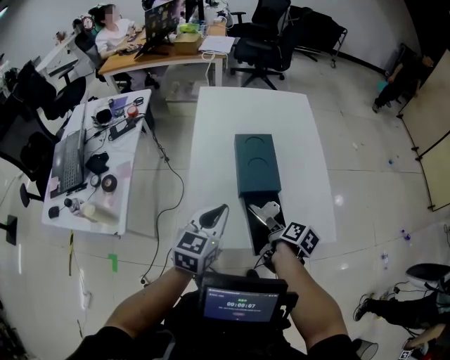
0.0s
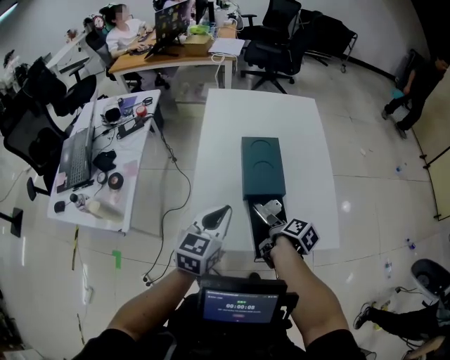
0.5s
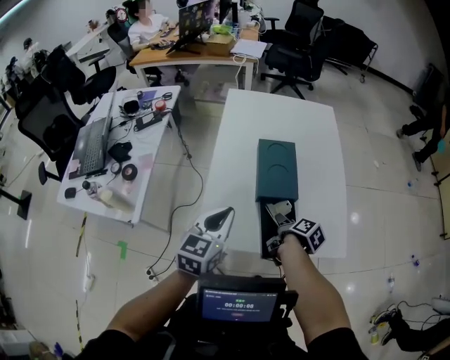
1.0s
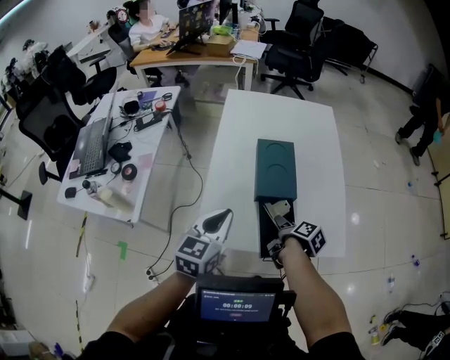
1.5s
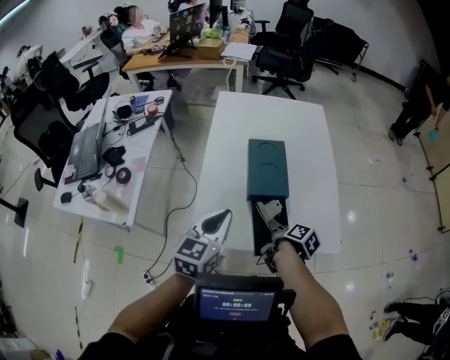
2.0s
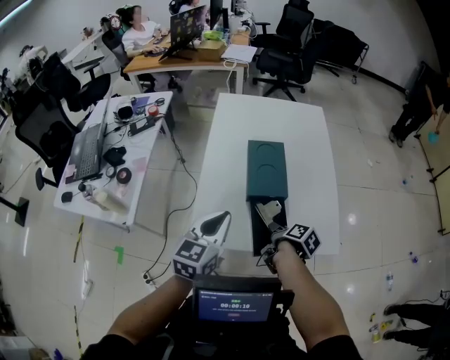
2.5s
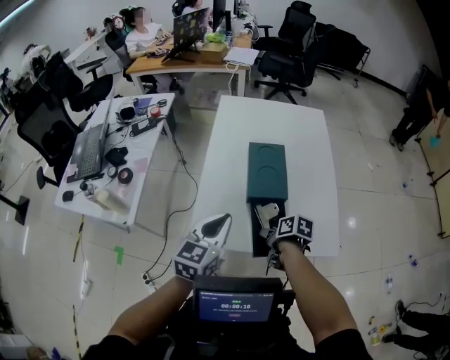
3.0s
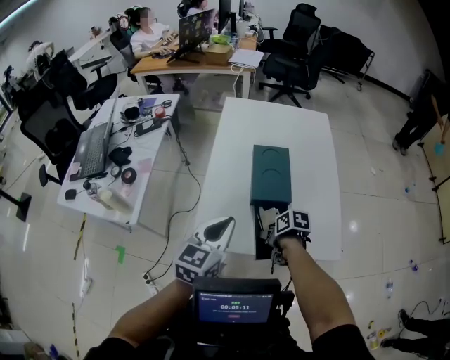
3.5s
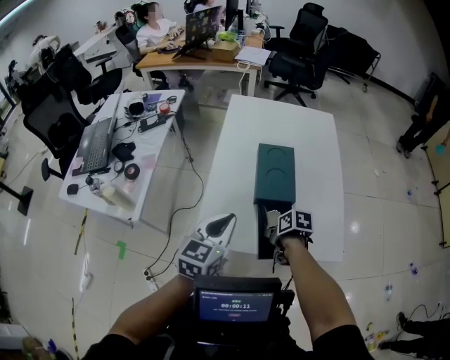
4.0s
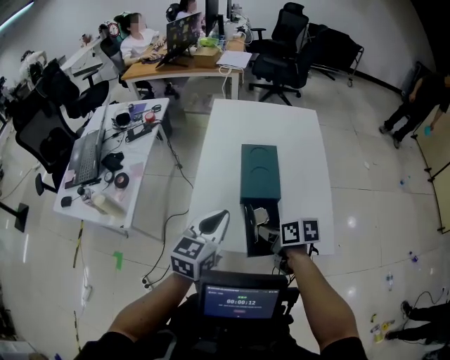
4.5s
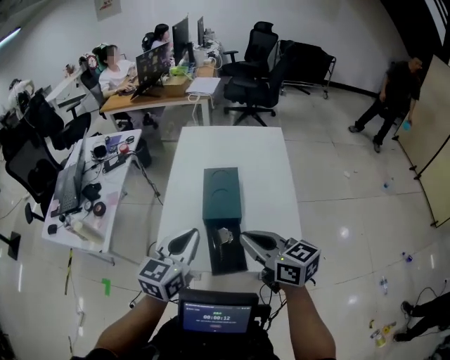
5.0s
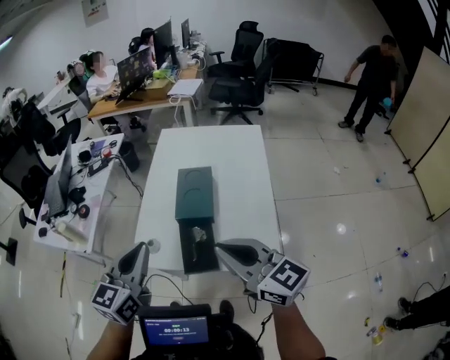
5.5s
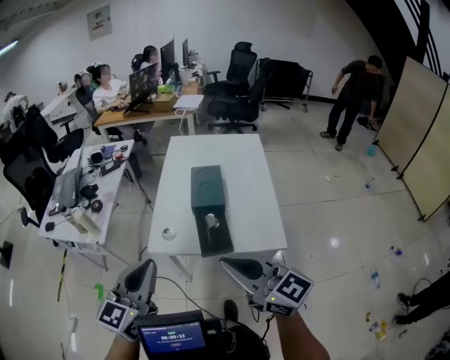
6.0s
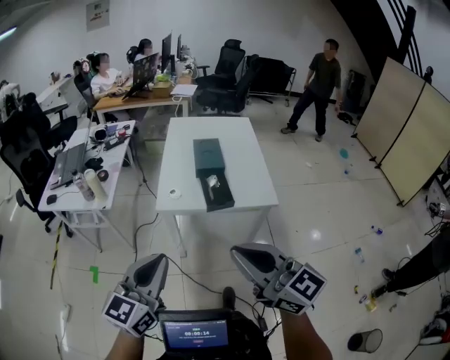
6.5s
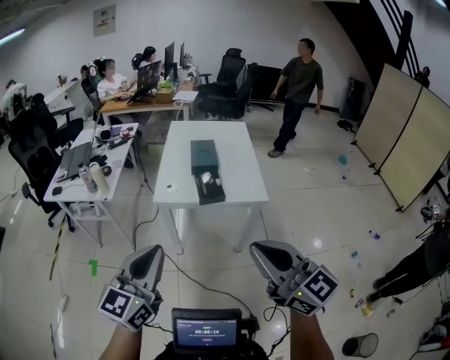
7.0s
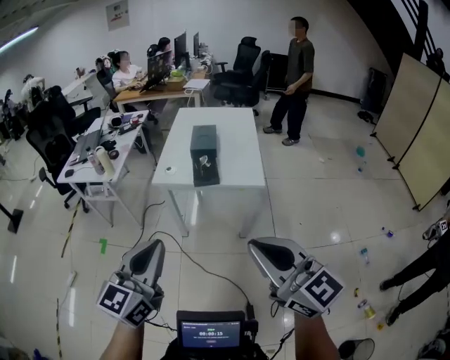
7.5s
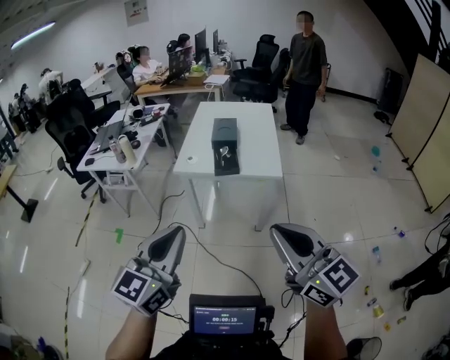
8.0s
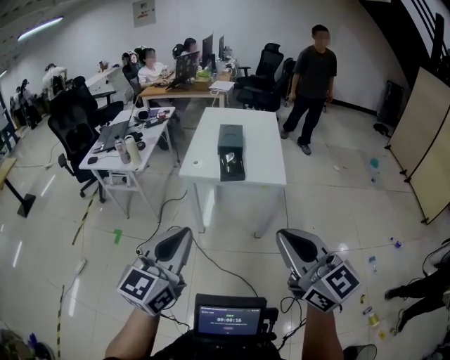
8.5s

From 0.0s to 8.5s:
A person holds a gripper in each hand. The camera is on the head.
From 0.0s to 2.0s: The grippers stay close to where they were, moving slightly.
From 2.0s to 4.0s: The right gripper swivels some 50 degrees.
From 4.0s to 6.5s: Both grippers are carried backward, approximately 60 cm. The right gripper travels upward by approximately 40 cm, angles its fingers upward, by some 60 degrees, and closes up.
From 6.5s to 8.5s: Both grippers travel together backward and to the right, about 30 cm.

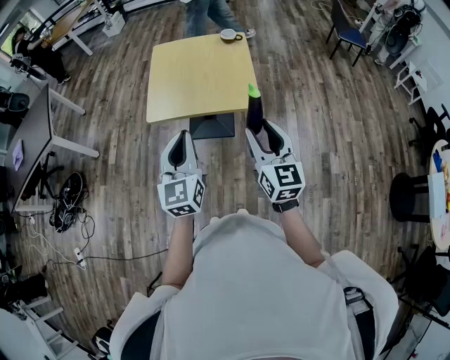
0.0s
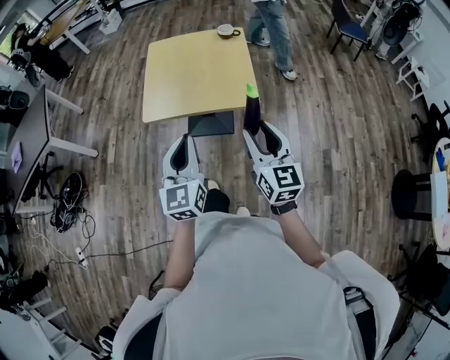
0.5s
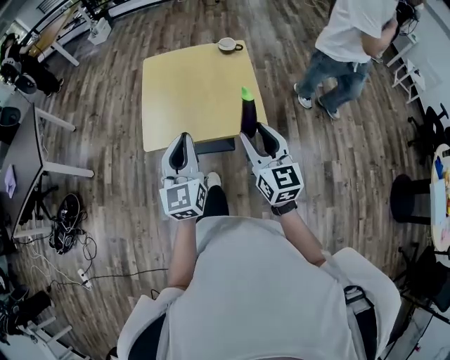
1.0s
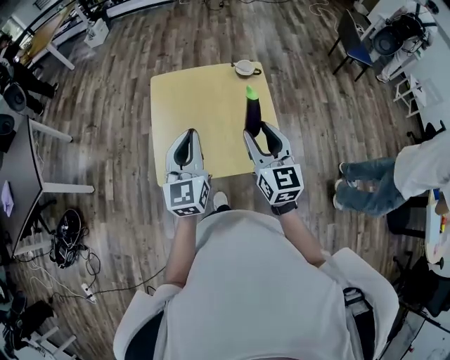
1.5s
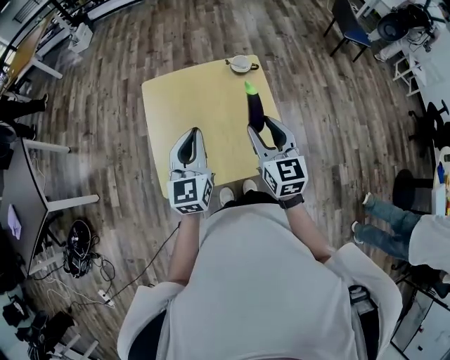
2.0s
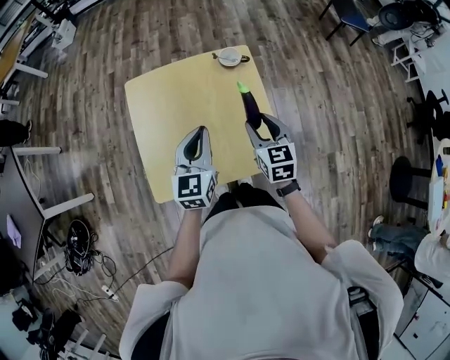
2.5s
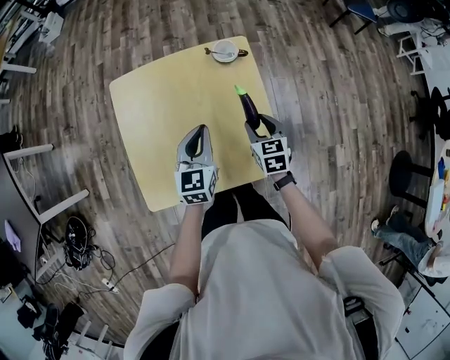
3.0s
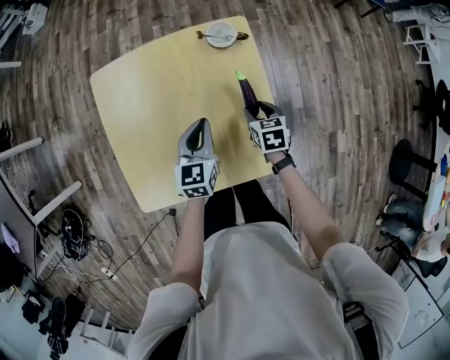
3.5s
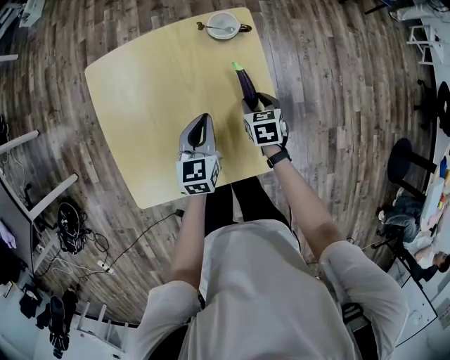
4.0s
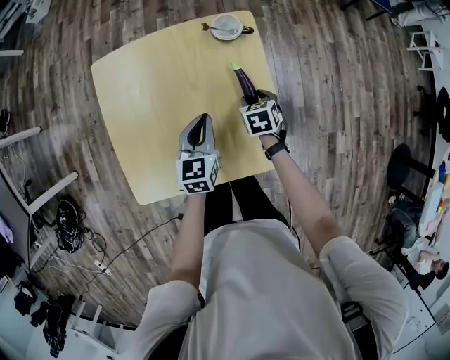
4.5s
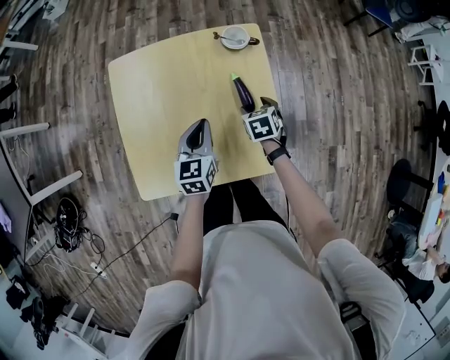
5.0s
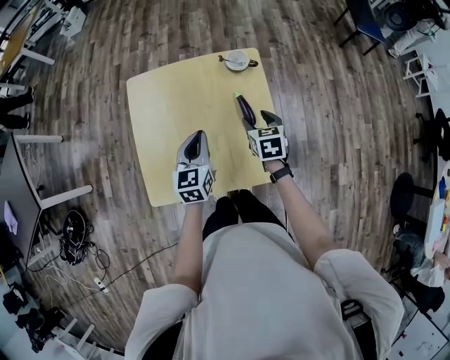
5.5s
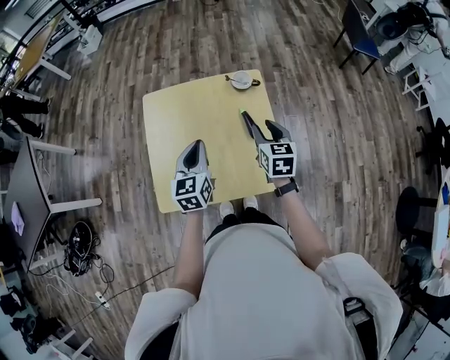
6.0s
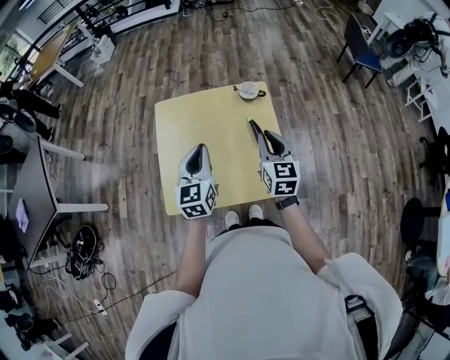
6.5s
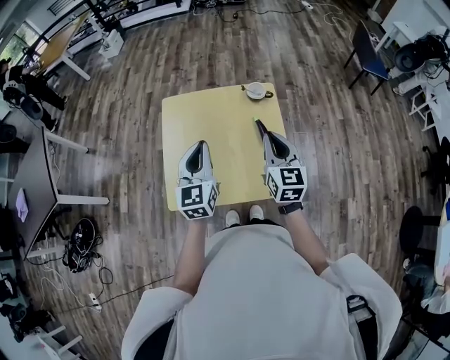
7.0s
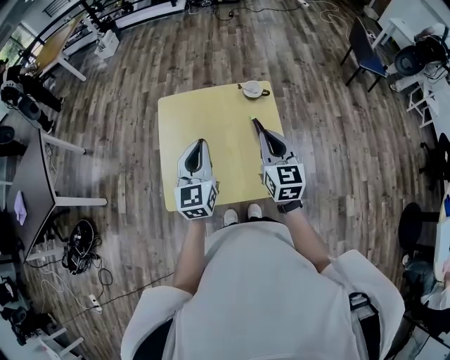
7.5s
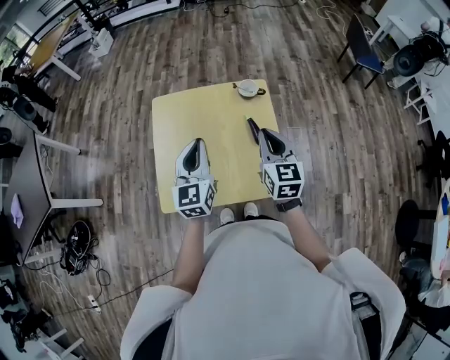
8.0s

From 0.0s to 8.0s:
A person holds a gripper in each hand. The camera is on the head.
From 0.0s to 2.0s: Both grippers travel together forward, roughly 40 cm.
From 2.0s to 4.0s: Both grippers move downward and forward, approximately 30 cm. The left gripper changes its angle by some 20 degrees, while the right gripper tilts its fingers about 40 degrees downward.
From 4.0s to 6.0s: The left gripper shifts some 20 cm upward and to the left. Meanwhile the right gripper goes roughly 25 cm upward, and rotates approximately 30 degrees.
From 6.0s to 8.0s: Both grippers travel together upward, some 10 cm. The right gripper closes its fingers.

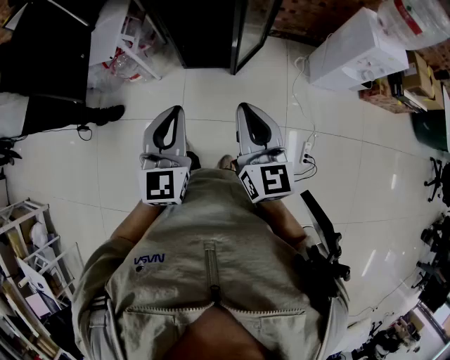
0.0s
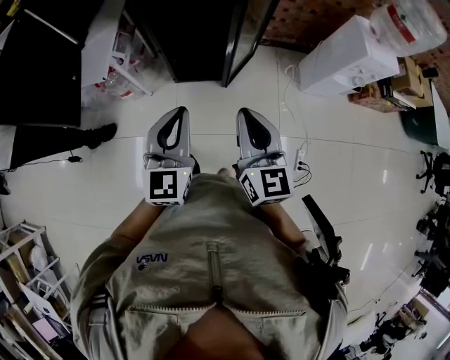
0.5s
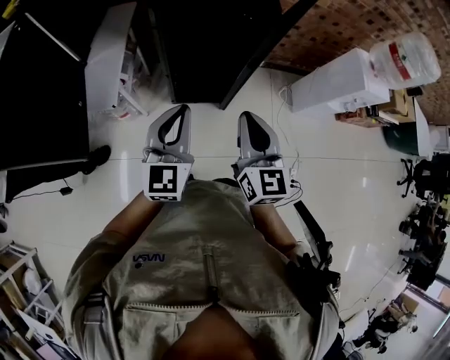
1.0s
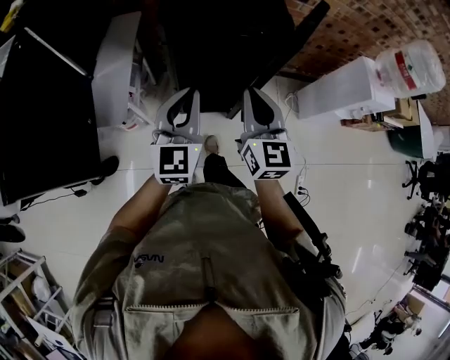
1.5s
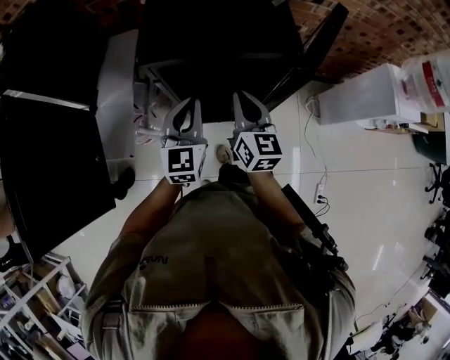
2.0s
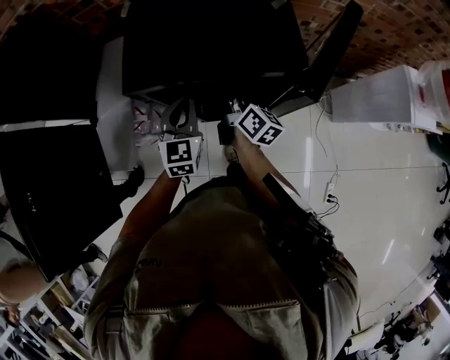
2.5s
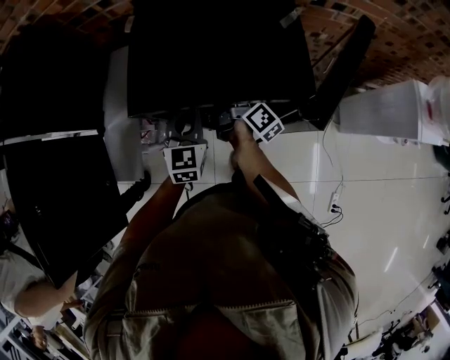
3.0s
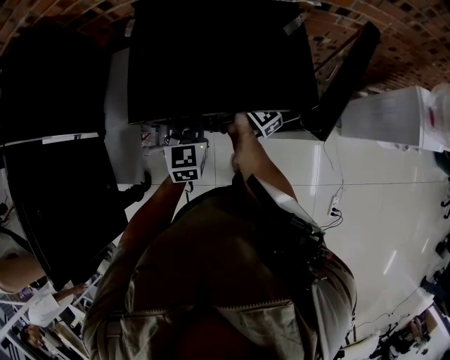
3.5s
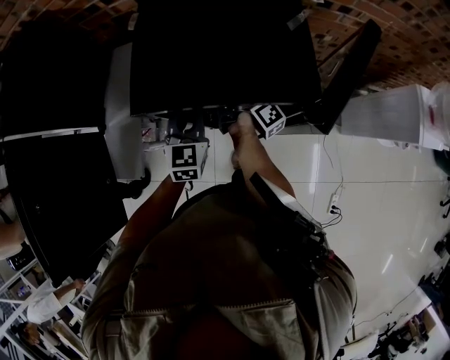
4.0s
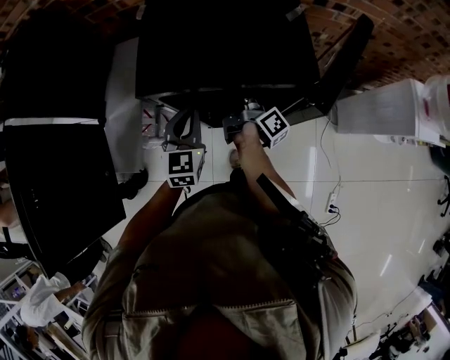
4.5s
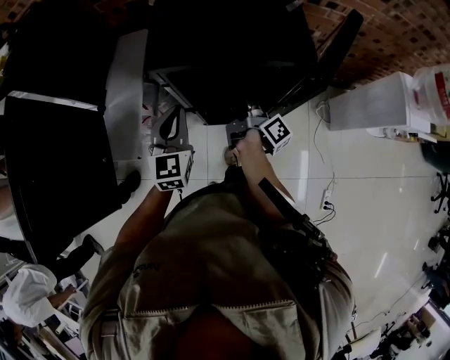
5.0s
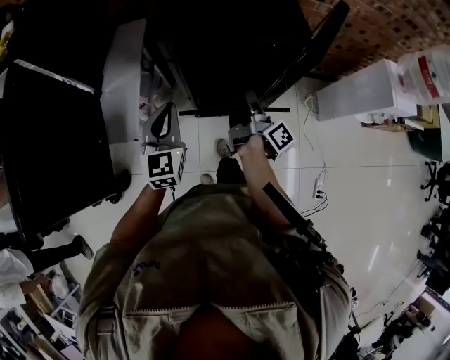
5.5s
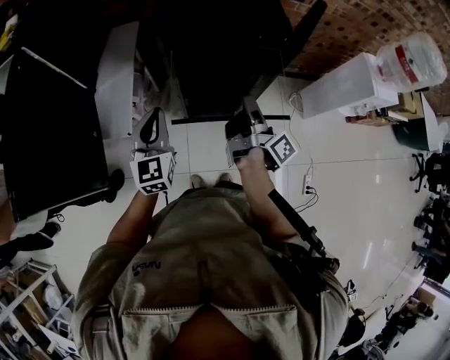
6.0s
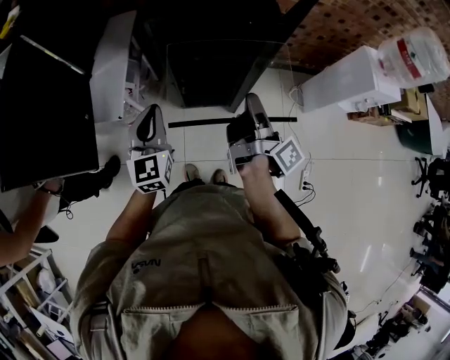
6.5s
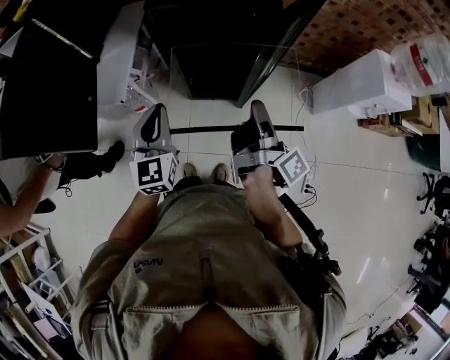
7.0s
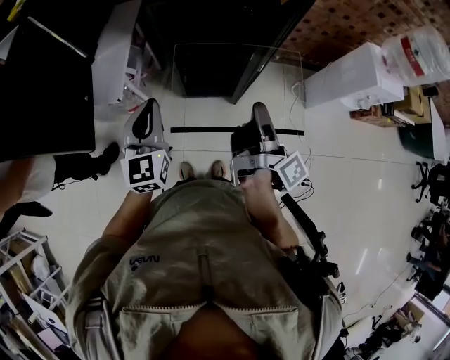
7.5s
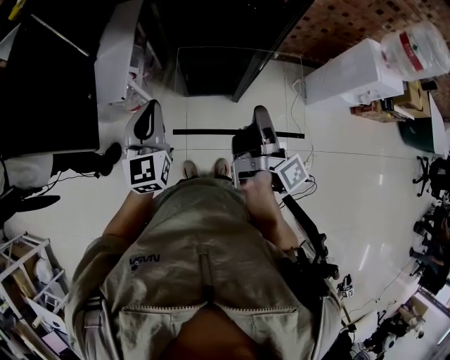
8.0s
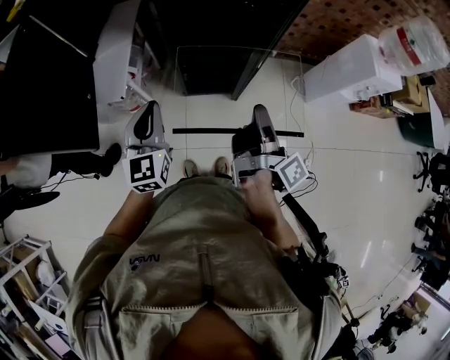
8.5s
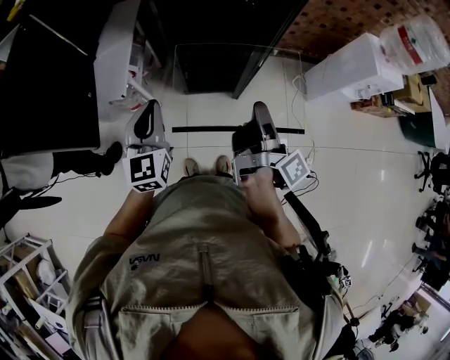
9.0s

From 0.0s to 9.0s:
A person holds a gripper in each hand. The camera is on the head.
From 0.0s to 2.0s: The left gripper moves about 40 cm.
From 4.5s to 7.0s: The left gripper moves some 30 cm.

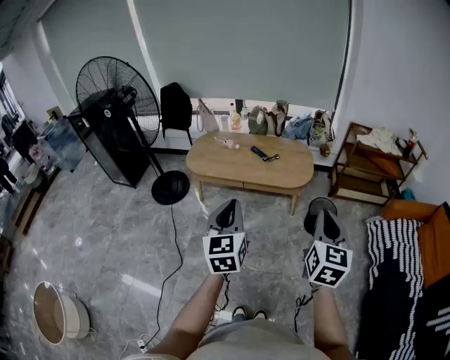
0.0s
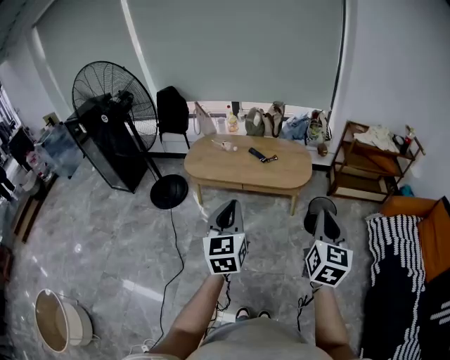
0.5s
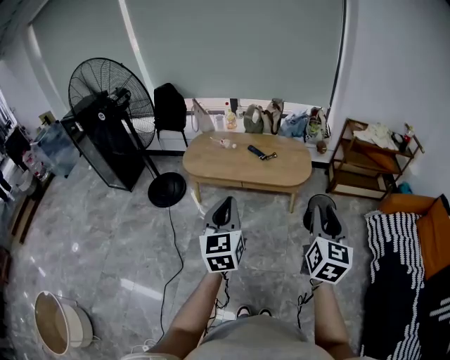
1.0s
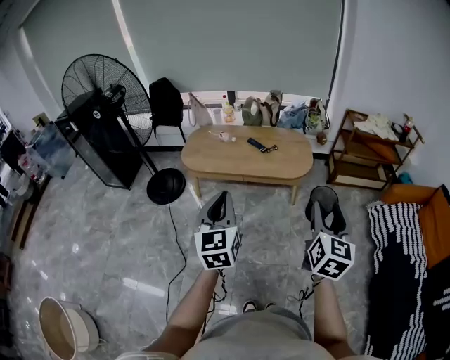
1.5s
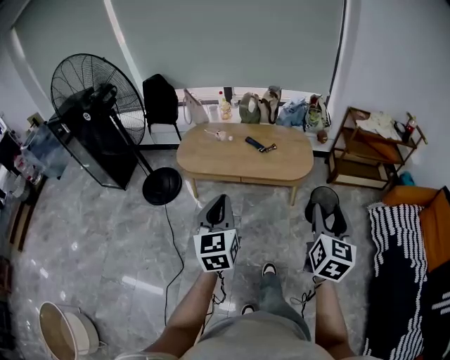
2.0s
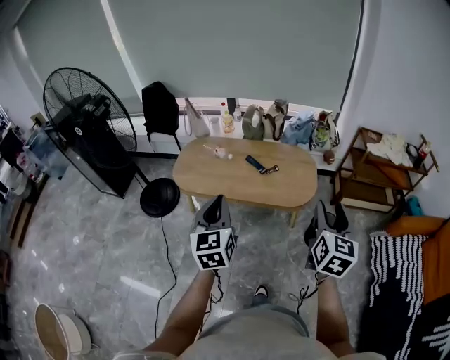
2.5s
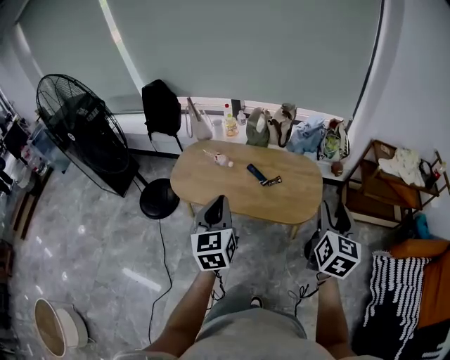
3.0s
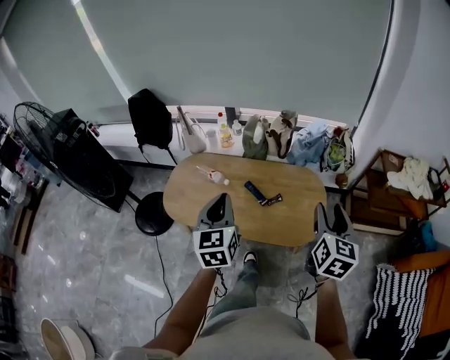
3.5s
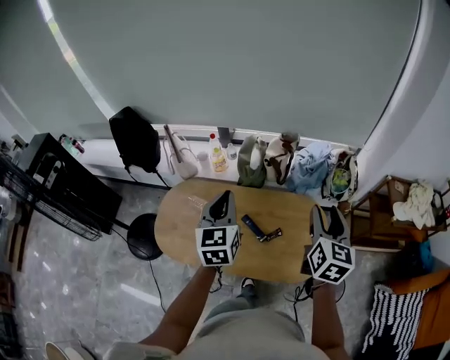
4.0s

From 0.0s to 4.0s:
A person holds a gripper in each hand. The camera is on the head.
From 0.0s to 2.0s: The right gripper goes some 5 cm forward, and opens its fingers. The left gripper heads to the left and forward, covering roughly 10 cm.
From 2.0s to 4.0s: The pair of grippers is taken forward, roughly 70 cm.
